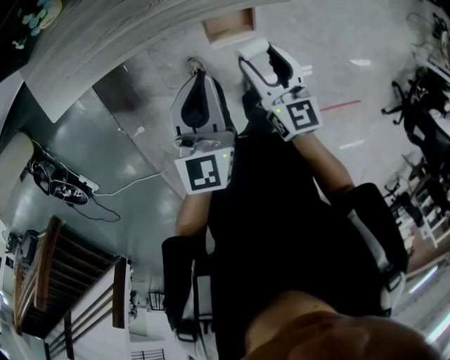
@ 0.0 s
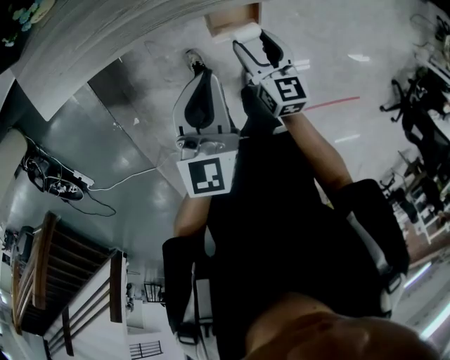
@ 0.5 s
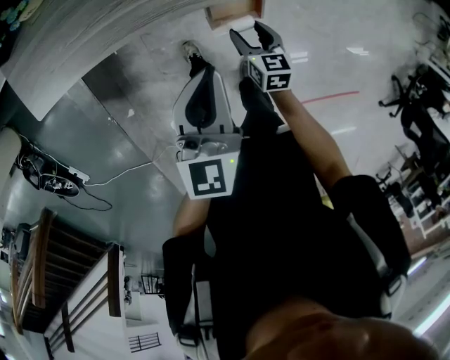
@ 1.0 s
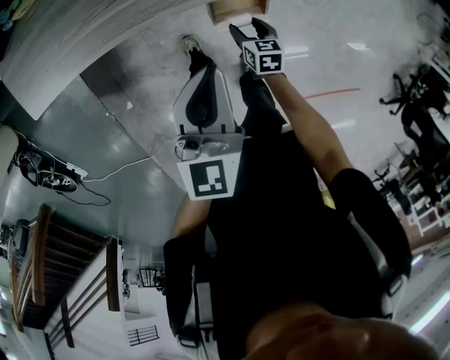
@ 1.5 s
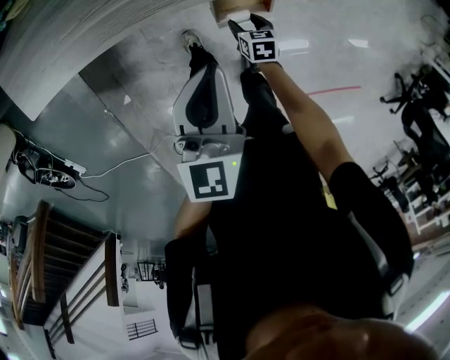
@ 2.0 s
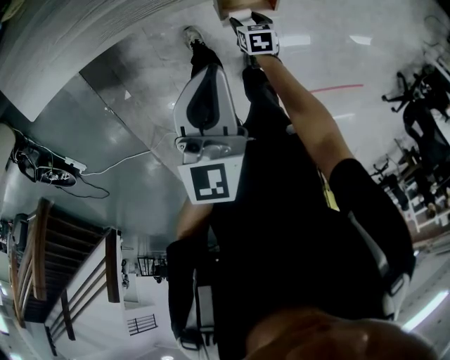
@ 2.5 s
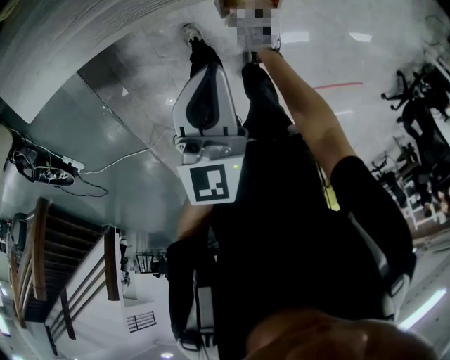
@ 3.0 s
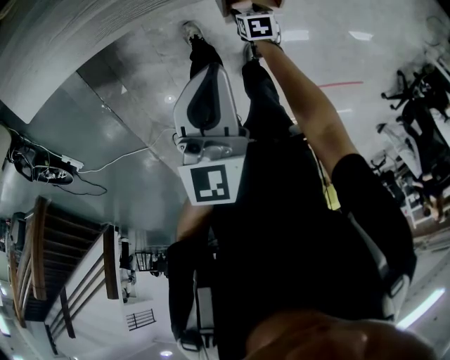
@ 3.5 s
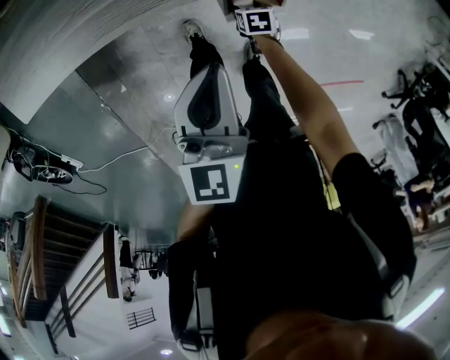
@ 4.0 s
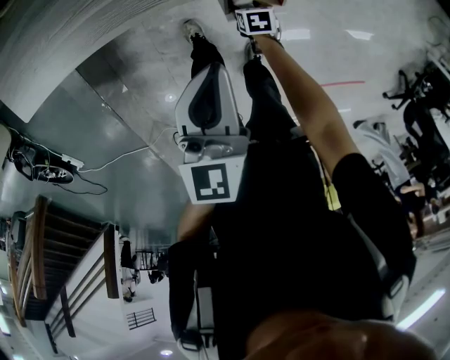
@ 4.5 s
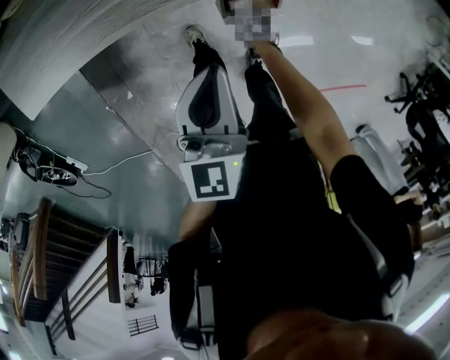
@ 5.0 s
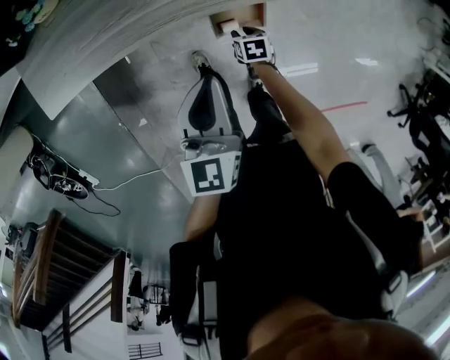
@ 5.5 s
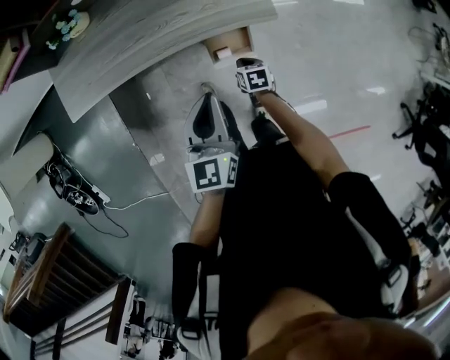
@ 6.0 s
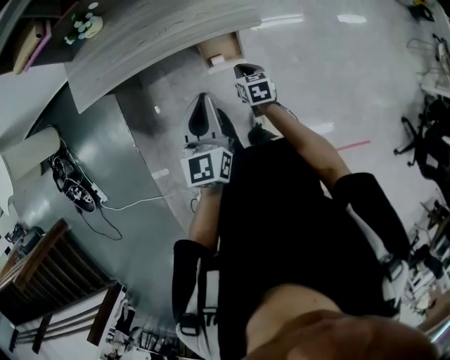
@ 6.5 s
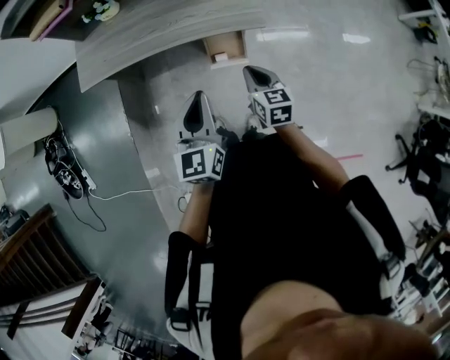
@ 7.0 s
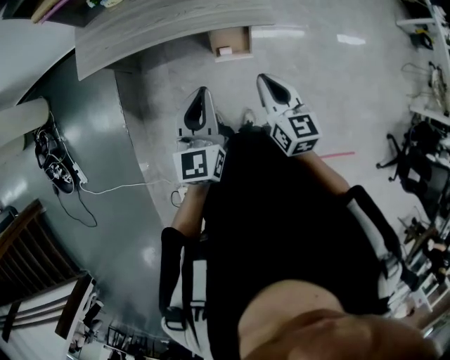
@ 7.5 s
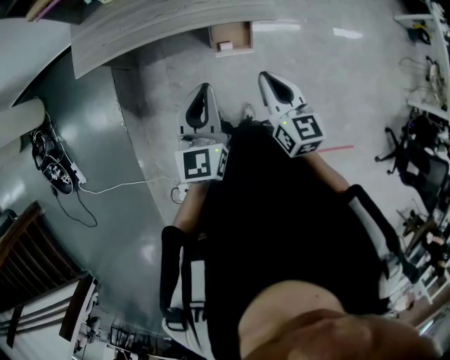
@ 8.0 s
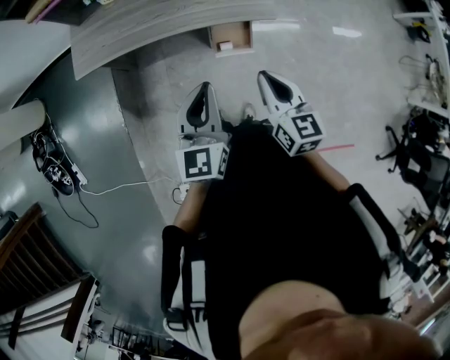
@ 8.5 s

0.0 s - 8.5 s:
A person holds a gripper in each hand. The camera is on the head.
0.0 s - 2.0 s: The left gripper heads downward, covering some 5 cm. Meanwhile the right gripper travels downward by about 35 cm, and angles its fingers downward, by roughly 40 degrees.
2.0 s - 4.0 s: The right gripper moves downward, roughly 5 cm.
4.0 s - 6.5 s: The right gripper heads upward, covering approximately 30 cm, points its fingers some 30 degrees further upward, and closes up. The left gripper moves some 25 cm.
6.5 s - 8.5 s: The right gripper is displaced upward and backward by approximately 25 cm, and changes its angle by roughly 30 degrees, while the left gripper goes approximately 10 cm to the left.

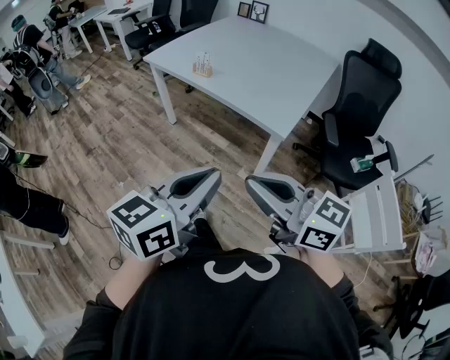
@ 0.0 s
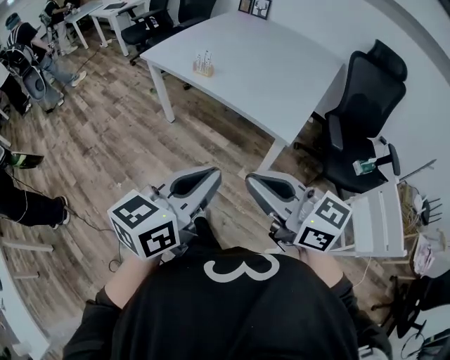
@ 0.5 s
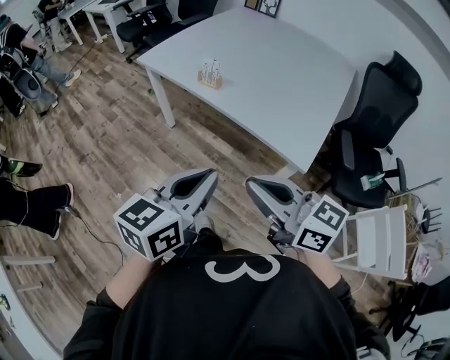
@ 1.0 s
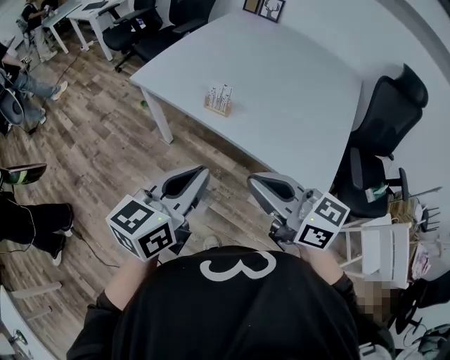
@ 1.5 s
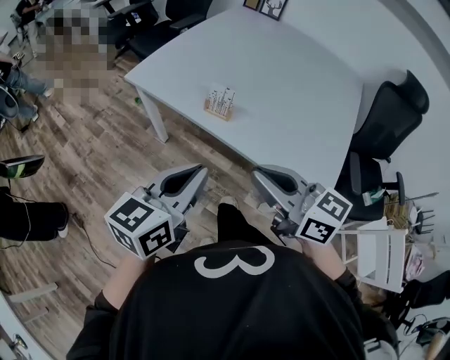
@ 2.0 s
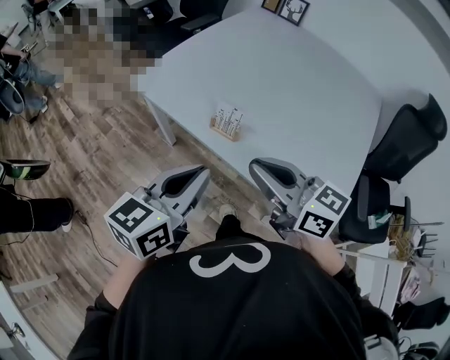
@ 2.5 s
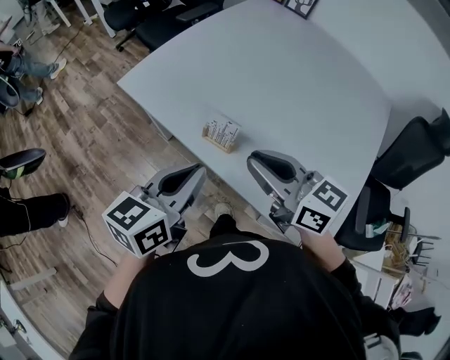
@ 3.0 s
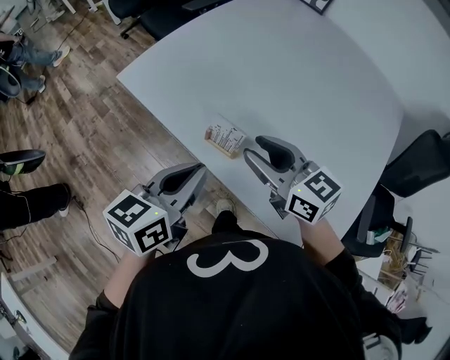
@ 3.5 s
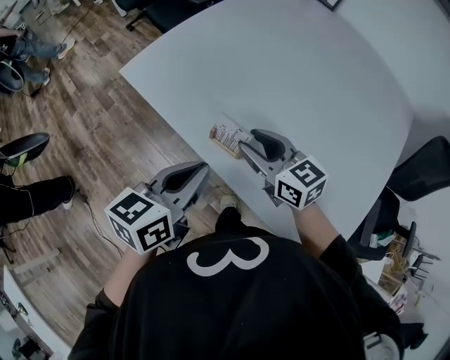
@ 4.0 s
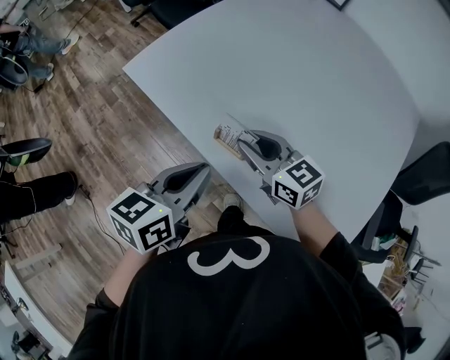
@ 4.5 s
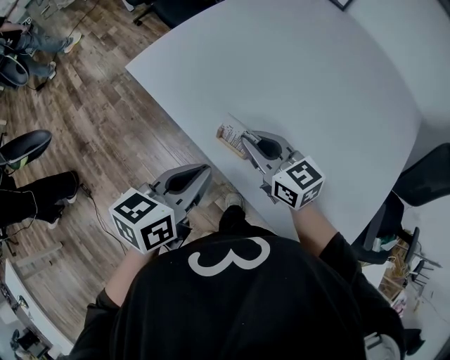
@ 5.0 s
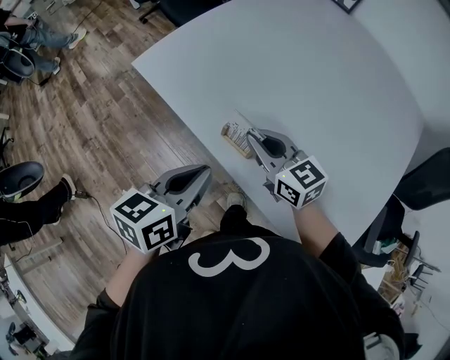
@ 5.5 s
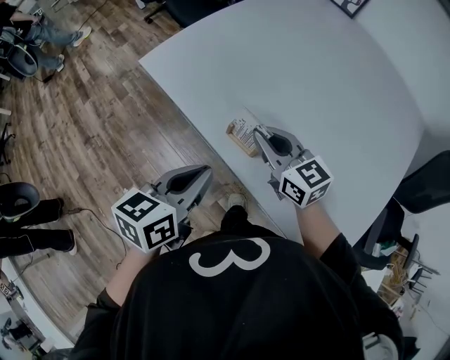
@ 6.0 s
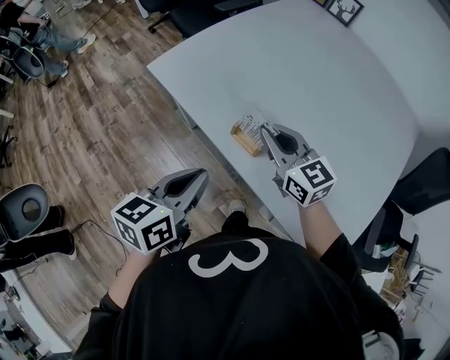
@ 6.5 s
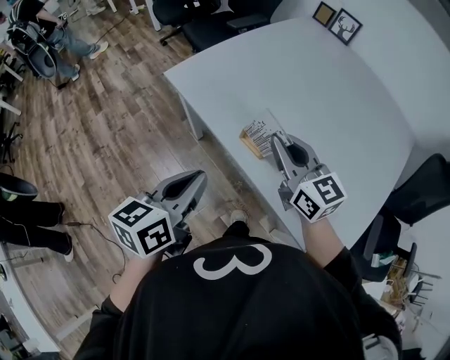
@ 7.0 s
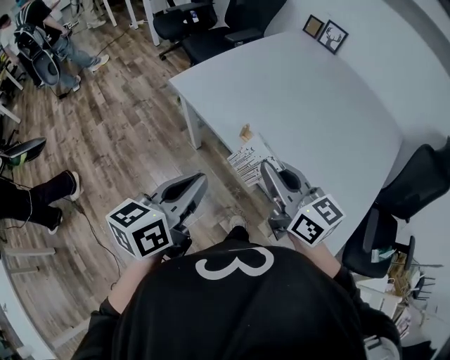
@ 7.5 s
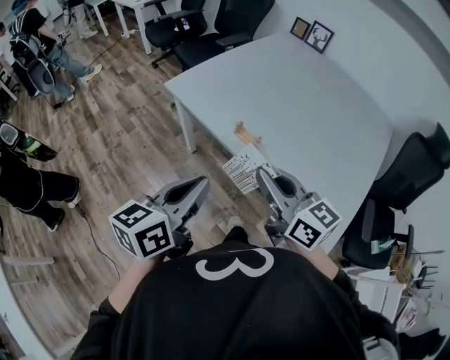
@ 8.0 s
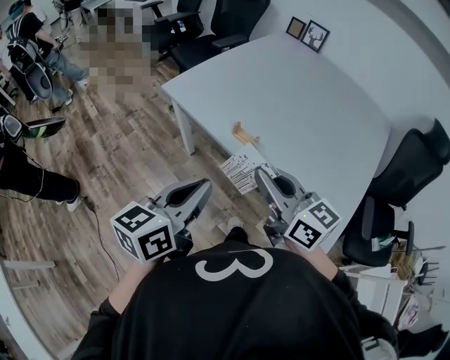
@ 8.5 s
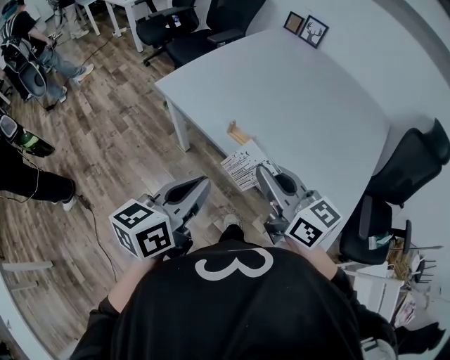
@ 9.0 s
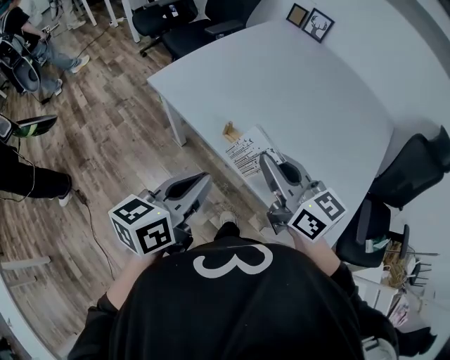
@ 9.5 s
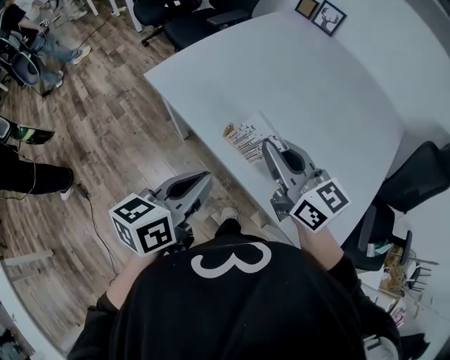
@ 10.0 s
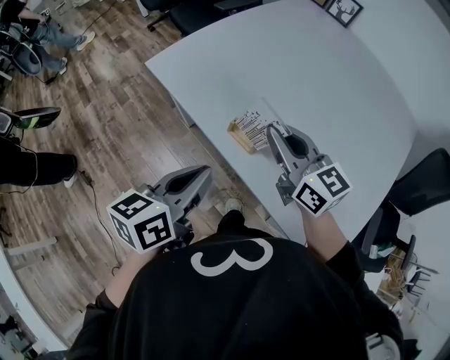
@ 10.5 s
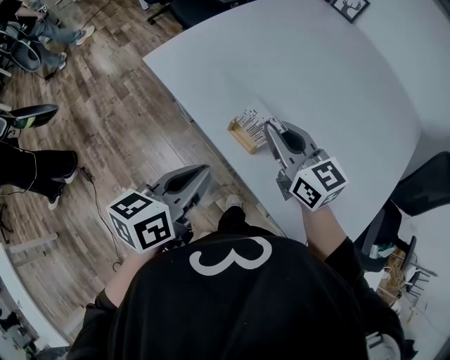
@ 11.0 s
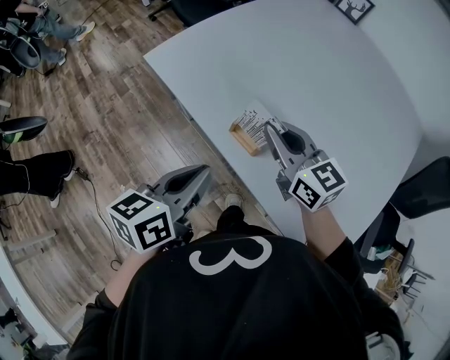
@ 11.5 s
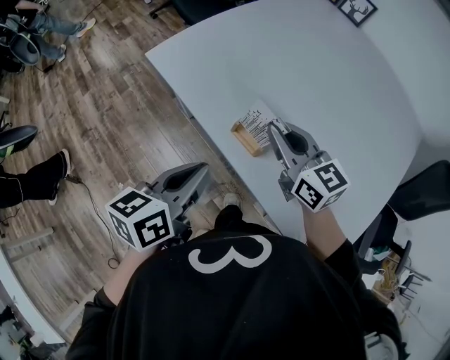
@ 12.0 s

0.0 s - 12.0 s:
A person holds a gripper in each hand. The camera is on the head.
0.0 s - 2.0 s: The grippers both shift forward by approximately 40 cm.
2.0 s - 4.0 s: The left gripper shifts some 20 cm forward and downward. Meanwhile the right gripper shifts roughly 30 cm forward and downward, and opens up.
4.0 s - 6.0 s: The right gripper closes up.
6.0 s - 8.0 s: The grippers both shift backward and upward by some 20 cm.
8.0 s - 10.0 s: Both grippers move forward, some 10 cm.
10.0 s - 12.0 s: The right gripper is displaced downward and forward by roughly 10 cm; the left gripper moves roughly 5 cm.

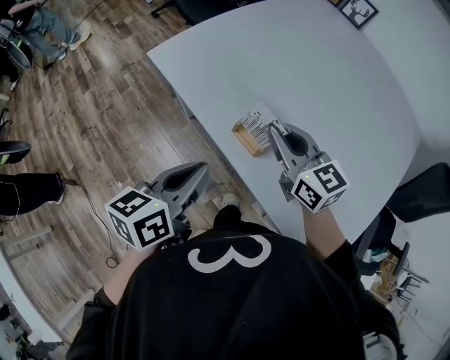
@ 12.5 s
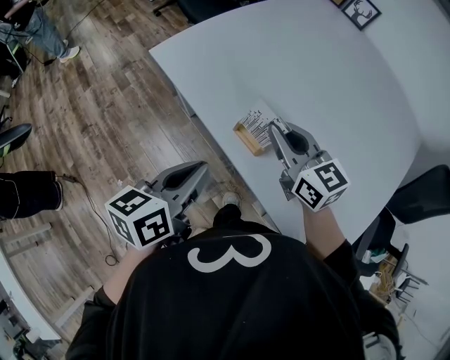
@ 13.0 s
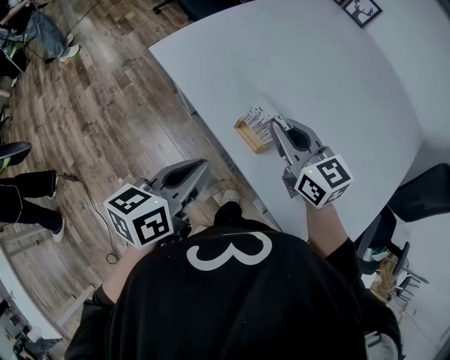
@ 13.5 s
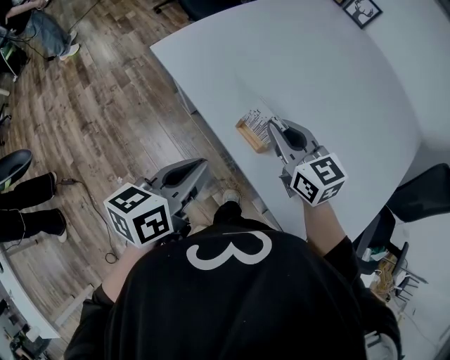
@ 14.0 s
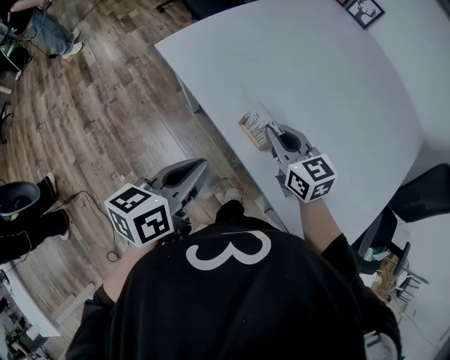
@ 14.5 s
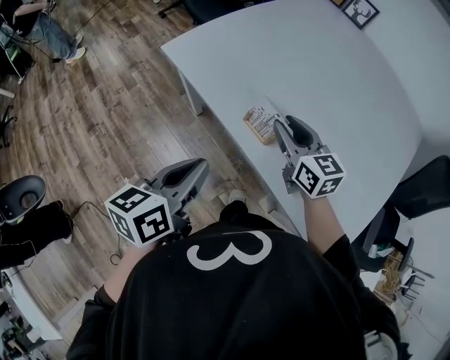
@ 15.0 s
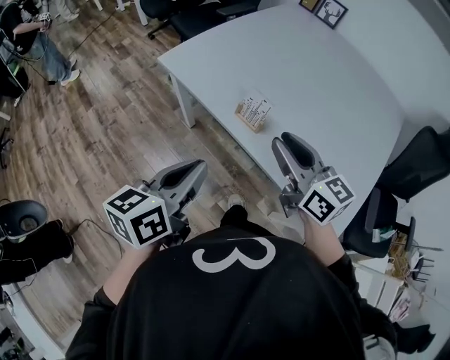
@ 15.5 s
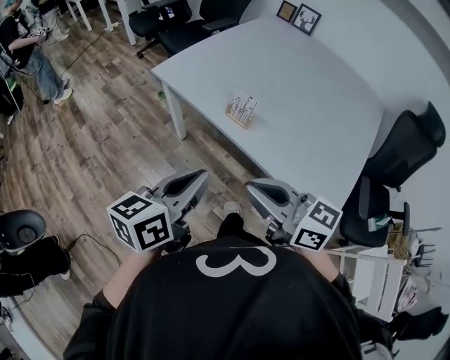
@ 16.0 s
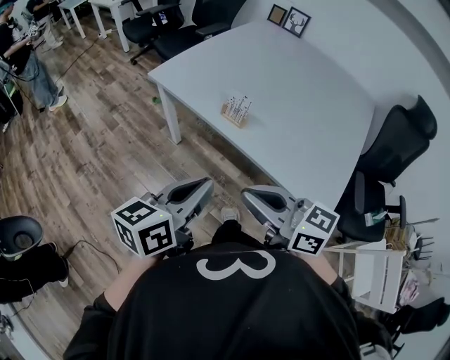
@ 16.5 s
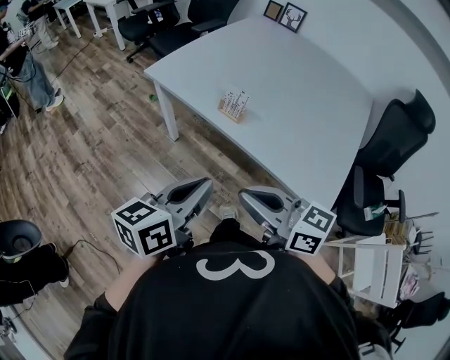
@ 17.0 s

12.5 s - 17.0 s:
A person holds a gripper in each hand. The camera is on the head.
12.5 s - 14.5 s: The right gripper is displaced downward by about 5 cm.
14.5 s - 17.0 s: The left gripper heads backward, covering some 20 cm. The right gripper travels backward and upward by about 35 cm, changes its angle by some 20 degrees, and opens and closes again.

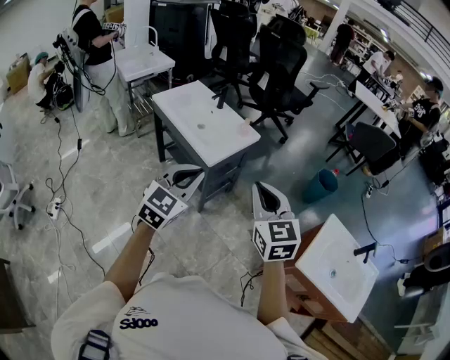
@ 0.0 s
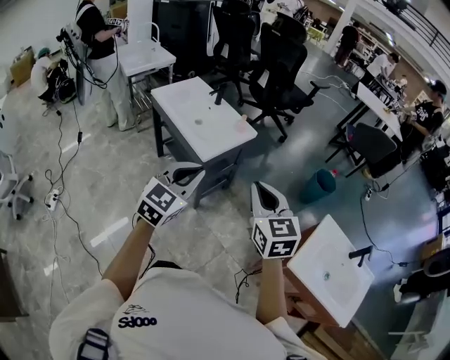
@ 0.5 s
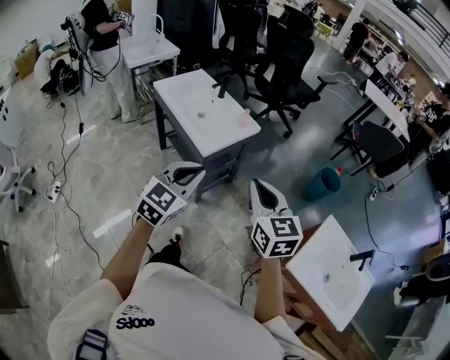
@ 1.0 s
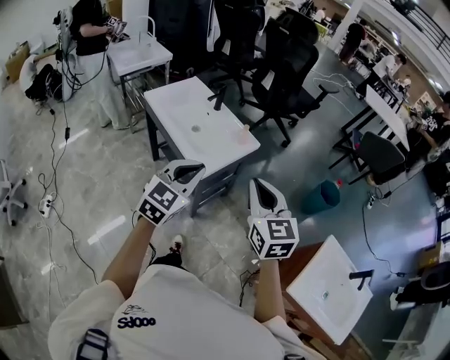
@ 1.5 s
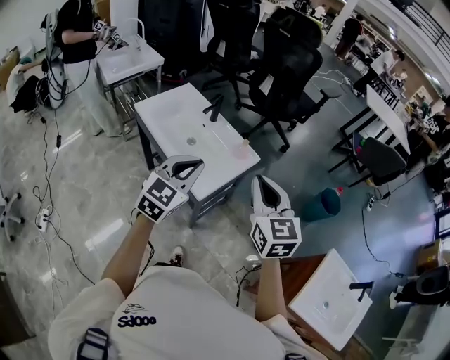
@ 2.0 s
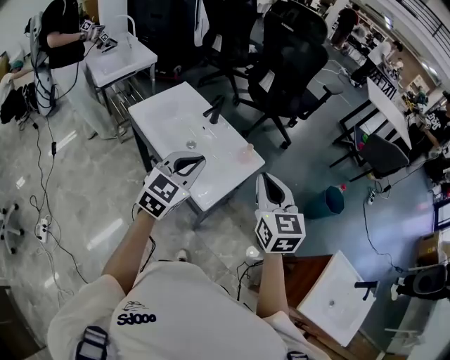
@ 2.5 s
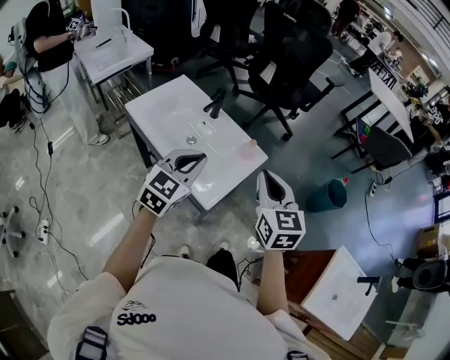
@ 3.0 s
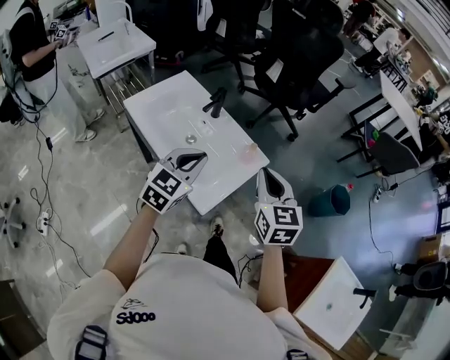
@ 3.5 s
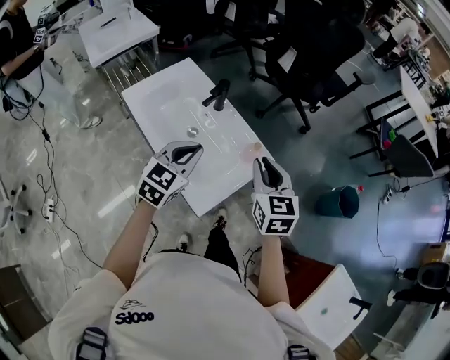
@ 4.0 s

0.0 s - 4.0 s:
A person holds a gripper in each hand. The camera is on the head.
0.0 s - 2.0 s: The grippers both shift forward by approximately 25 cm.
2.0 s - 4.0 s: Both grippers travel together forward and downward, some 25 cm.
